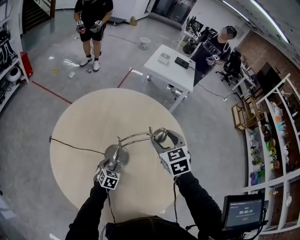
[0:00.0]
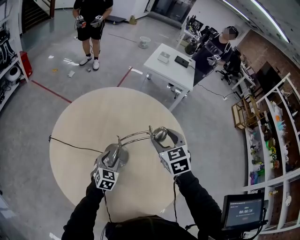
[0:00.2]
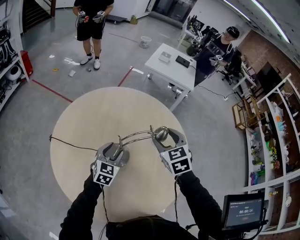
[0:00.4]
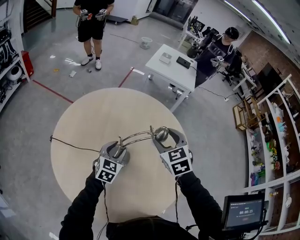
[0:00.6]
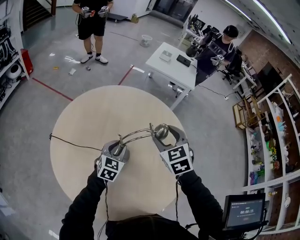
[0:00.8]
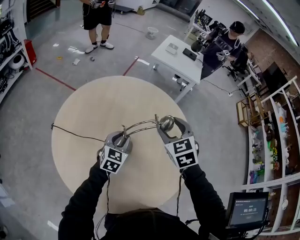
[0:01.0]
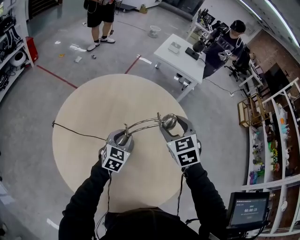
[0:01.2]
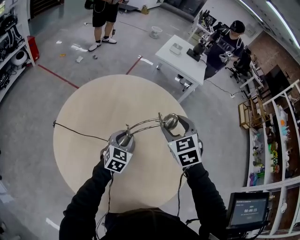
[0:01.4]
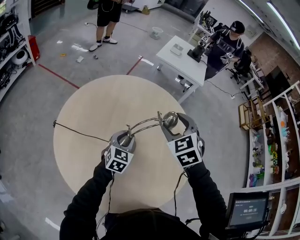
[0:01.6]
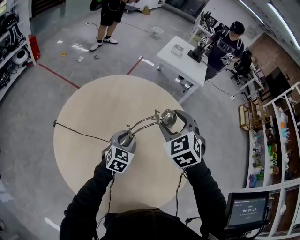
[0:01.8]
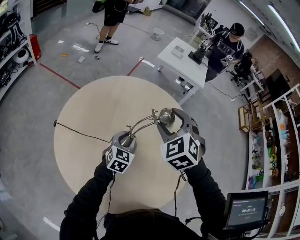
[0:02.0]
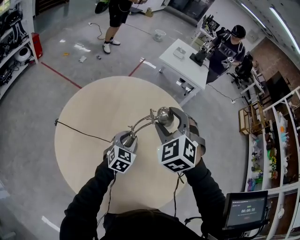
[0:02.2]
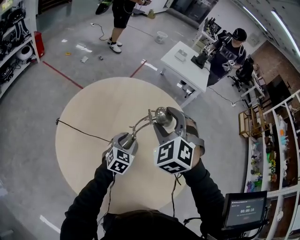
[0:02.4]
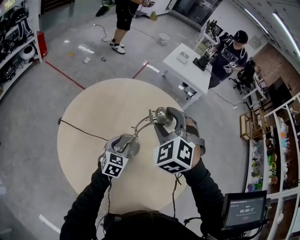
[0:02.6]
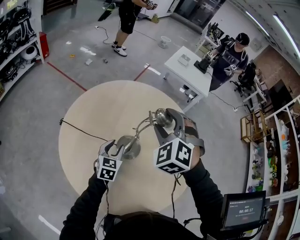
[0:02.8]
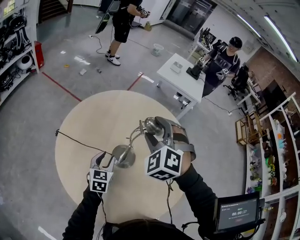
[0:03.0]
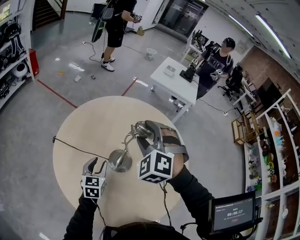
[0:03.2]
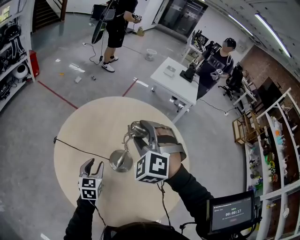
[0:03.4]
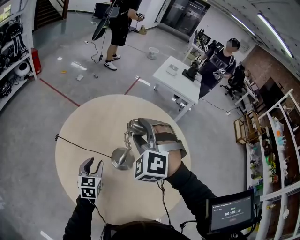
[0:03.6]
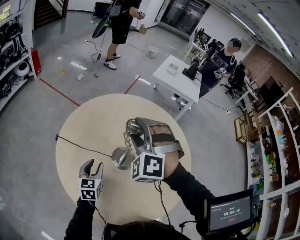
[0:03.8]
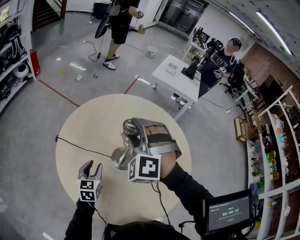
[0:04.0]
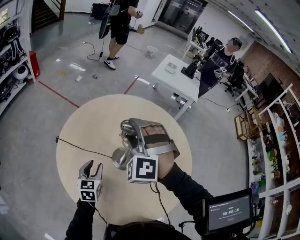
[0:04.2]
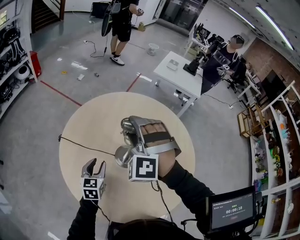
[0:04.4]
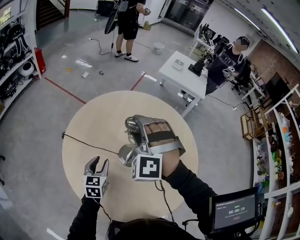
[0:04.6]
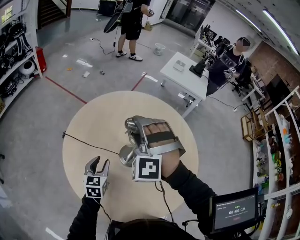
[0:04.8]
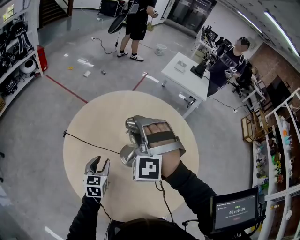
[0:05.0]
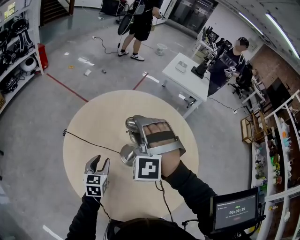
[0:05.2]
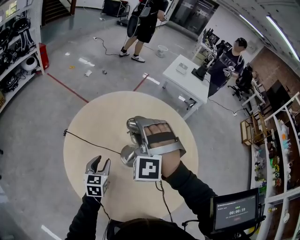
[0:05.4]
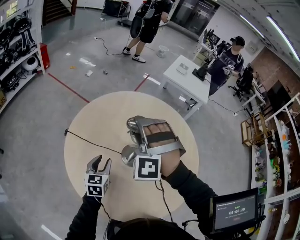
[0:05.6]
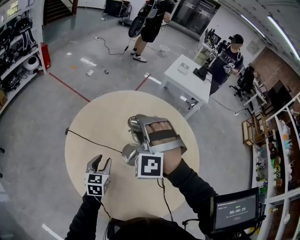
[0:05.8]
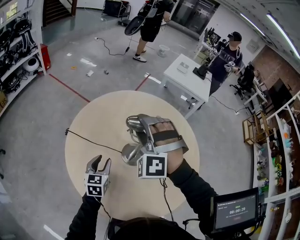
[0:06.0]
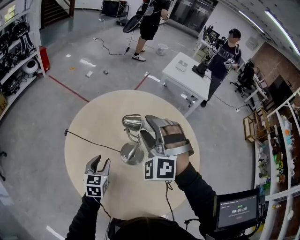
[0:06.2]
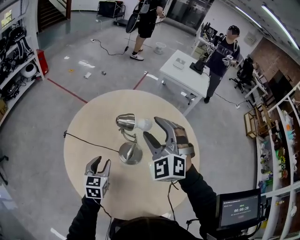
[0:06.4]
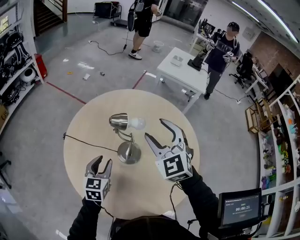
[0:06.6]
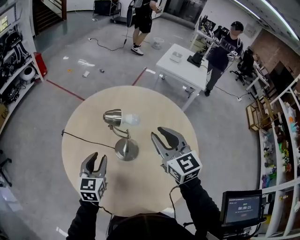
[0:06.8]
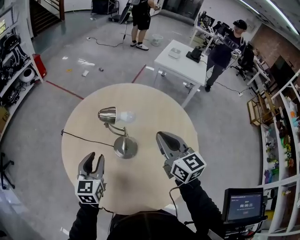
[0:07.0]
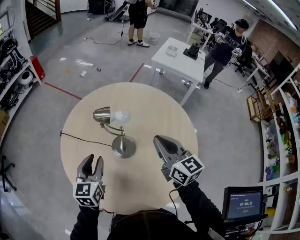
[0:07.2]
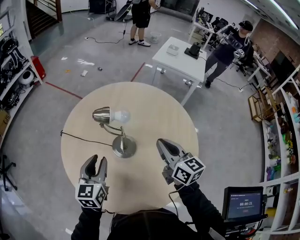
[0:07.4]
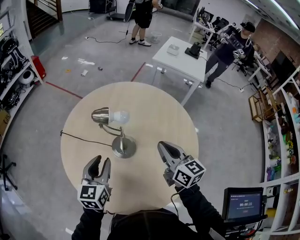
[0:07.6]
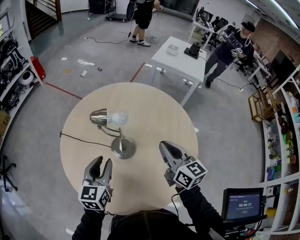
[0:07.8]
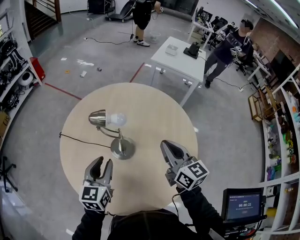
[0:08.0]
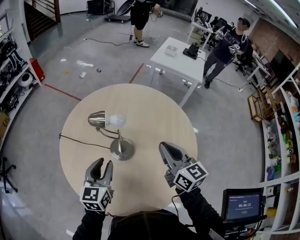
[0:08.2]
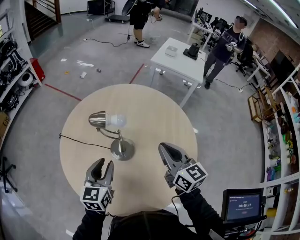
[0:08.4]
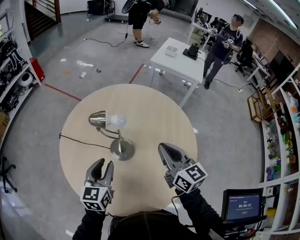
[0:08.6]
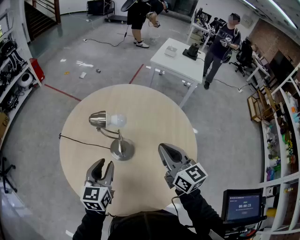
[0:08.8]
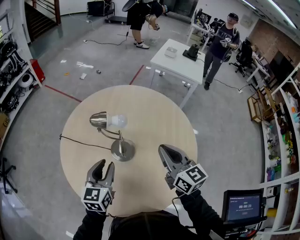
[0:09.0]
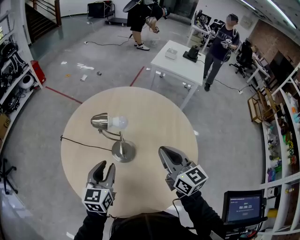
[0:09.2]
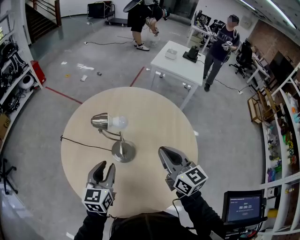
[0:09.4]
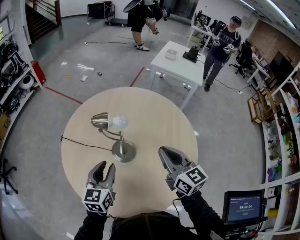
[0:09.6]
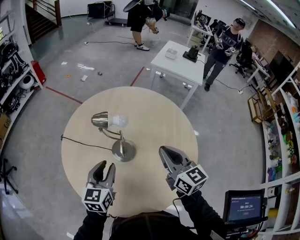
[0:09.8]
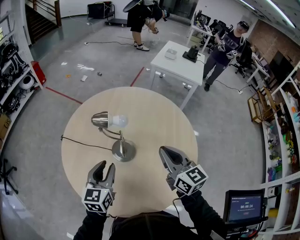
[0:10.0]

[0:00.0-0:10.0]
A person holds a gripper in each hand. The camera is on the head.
0:00.0 to 0:01.4: The left gripper heads upward, covering some 15 cm, turns by roughly 20 degrees, and closes its fingers.
0:01.4 to 0:02.8: The right gripper is displaced to the left and upward by about 10 cm, and rotates approximately 40 degrees. Meanwhile the left gripper heads to the left and backward, covering some 10 cm.
0:02.8 to 0:04.2: The left gripper moves to the left and backward, about 10 cm. The right gripper heads to the left, covering approximately 10 cm.
0:04.2 to 0:05.8: There are only small adjustments of the grippers.
0:05.8 to 0:07.2: The right gripper heads to the right, covering about 20 cm, twists about 100 degrees clockwise, seen from behind, and closes its fingers. Meanwhile the left gripper moves upward and to the right, roughly 10 cm.
0:07.2 to 0:08.6: The left gripper heads to the right, covering some 5 cm.
0:08.6 to 0:10.0: The grippers make only small movements.

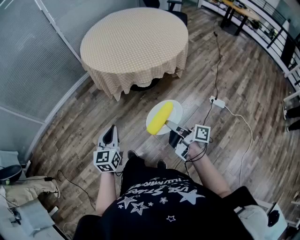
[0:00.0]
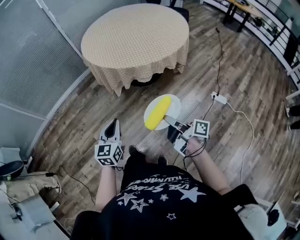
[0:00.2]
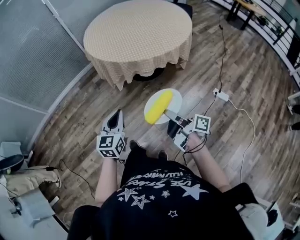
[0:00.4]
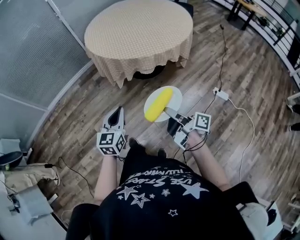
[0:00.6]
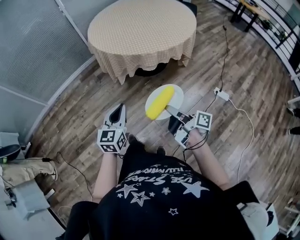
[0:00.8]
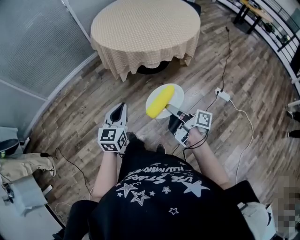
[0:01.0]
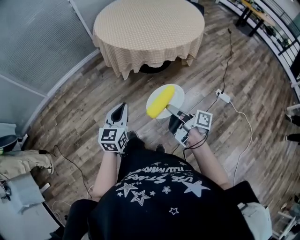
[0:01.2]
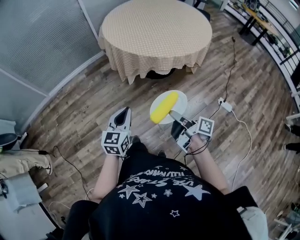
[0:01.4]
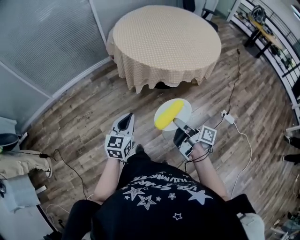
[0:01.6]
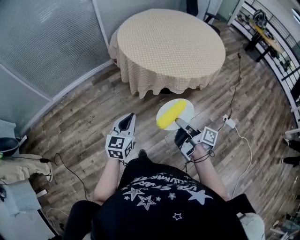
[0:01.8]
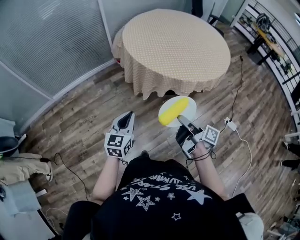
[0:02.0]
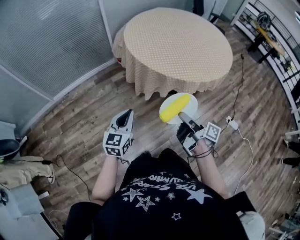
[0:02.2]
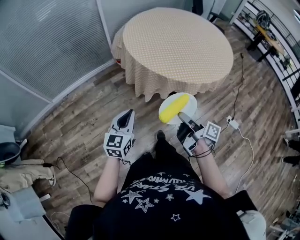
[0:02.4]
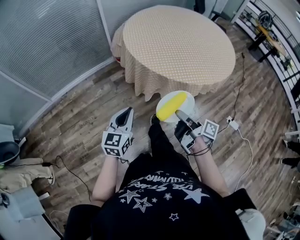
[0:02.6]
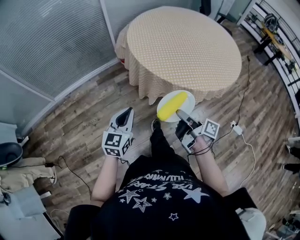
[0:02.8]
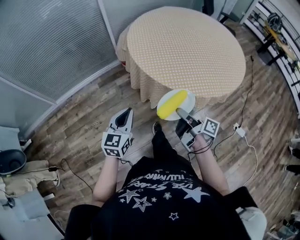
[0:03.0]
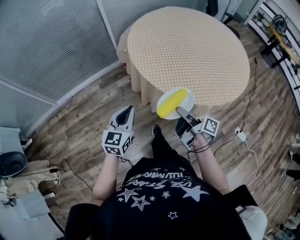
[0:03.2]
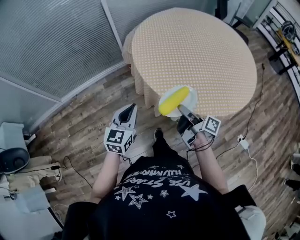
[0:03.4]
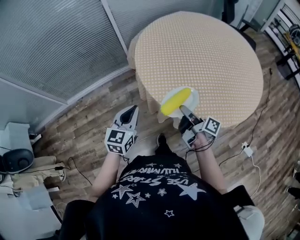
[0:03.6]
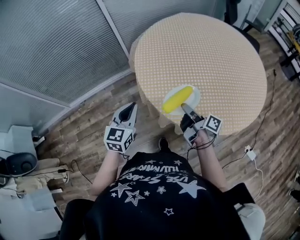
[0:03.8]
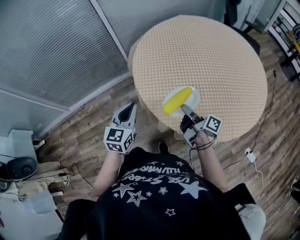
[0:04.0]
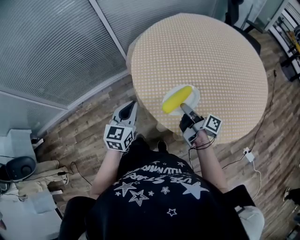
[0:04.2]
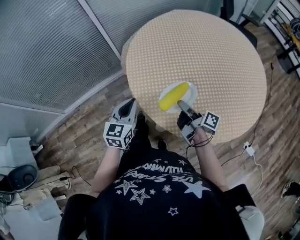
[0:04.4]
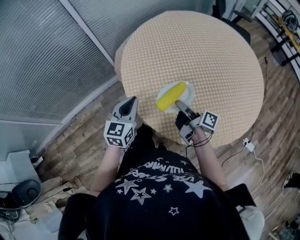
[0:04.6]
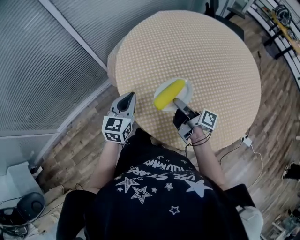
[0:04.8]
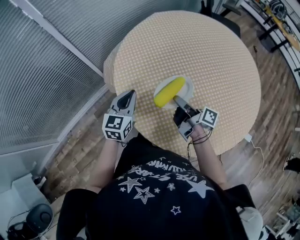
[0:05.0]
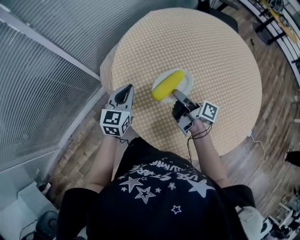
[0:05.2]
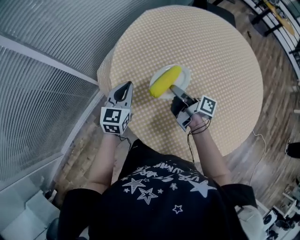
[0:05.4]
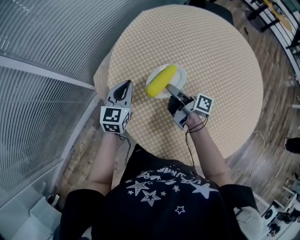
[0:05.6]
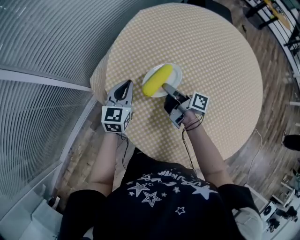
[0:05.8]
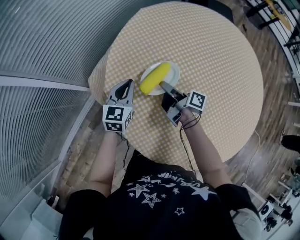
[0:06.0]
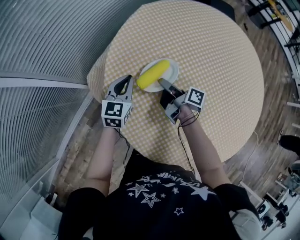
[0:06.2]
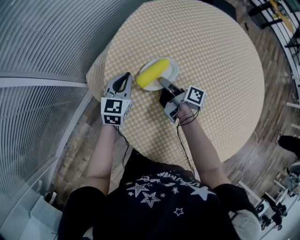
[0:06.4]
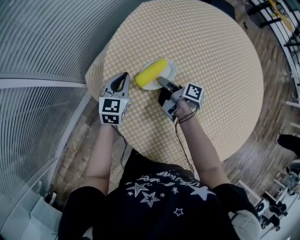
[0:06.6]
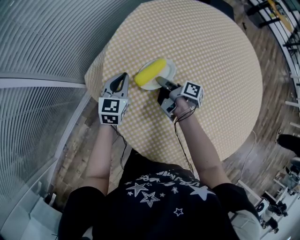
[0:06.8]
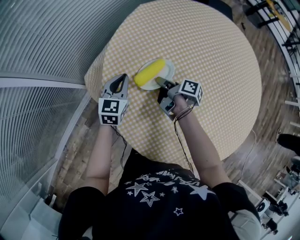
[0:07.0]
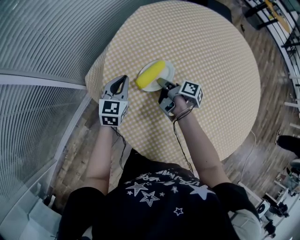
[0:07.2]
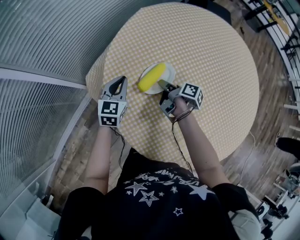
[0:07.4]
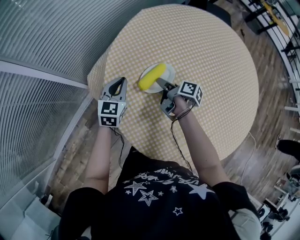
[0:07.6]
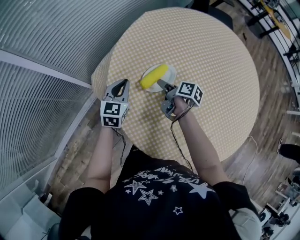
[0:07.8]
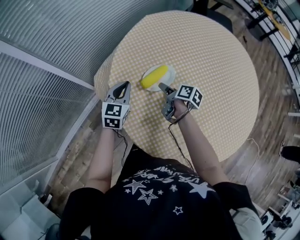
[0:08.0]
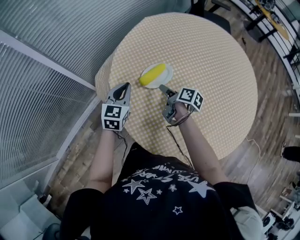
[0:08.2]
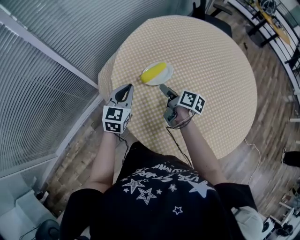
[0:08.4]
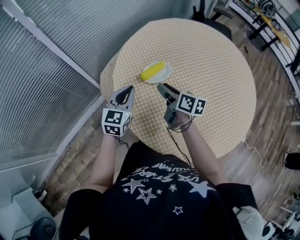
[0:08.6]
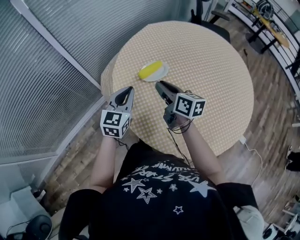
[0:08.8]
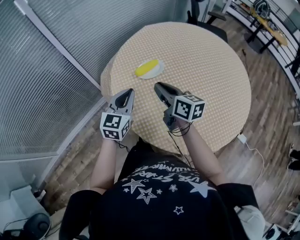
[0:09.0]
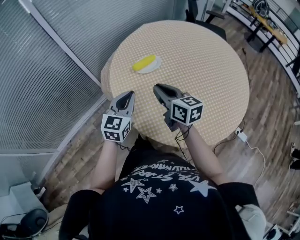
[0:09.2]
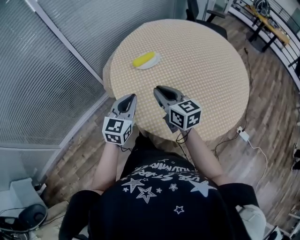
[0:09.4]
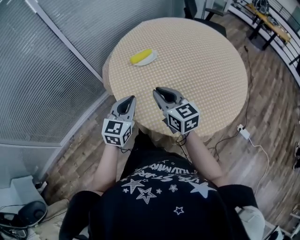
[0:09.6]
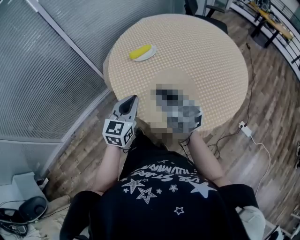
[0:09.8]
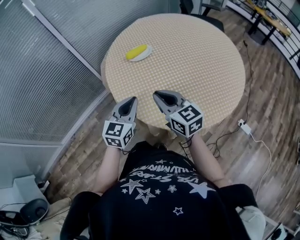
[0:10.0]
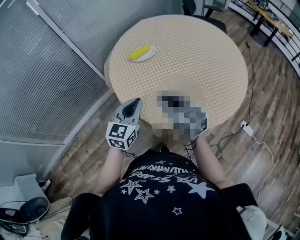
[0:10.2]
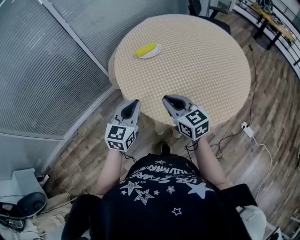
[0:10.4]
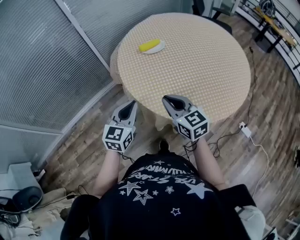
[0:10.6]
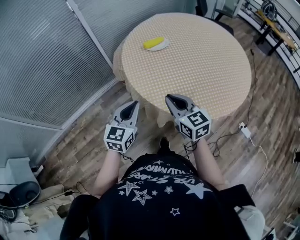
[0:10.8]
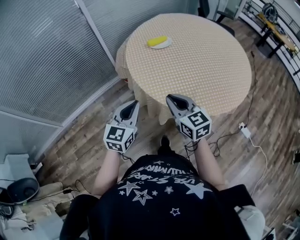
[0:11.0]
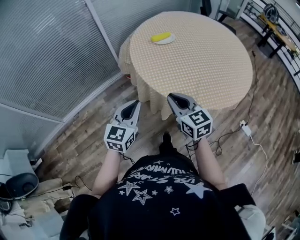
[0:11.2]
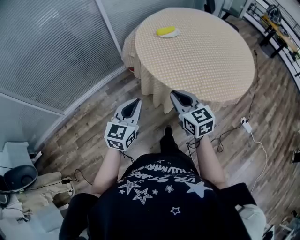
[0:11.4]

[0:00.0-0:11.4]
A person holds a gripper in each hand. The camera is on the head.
0:01.4 to 0:02.8: The left gripper ends up approximately 25 cm from where it was.
0:02.8 to 0:04.2: The left gripper changes place by approximately 30 cm.
0:04.2 to 0:05.6: The left gripper ends up approximately 40 cm from where it was, and rotates roughly 20 degrees.
0:05.6 to 0:07.2: The left gripper moves approximately 10 cm.
0:07.2 to 0:08.6: The left gripper changes place by about 20 cm.
0:08.6 to 0:10.0: The left gripper shifts by approximately 30 cm.
0:10.0 to 0:11.4: The left gripper shifts by about 25 cm.

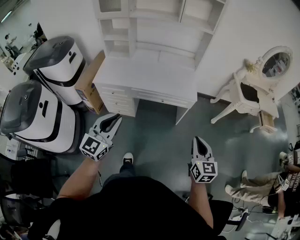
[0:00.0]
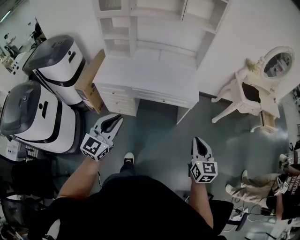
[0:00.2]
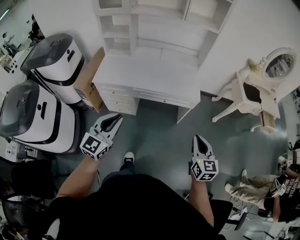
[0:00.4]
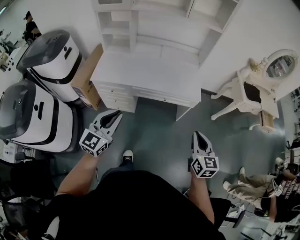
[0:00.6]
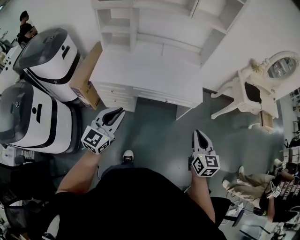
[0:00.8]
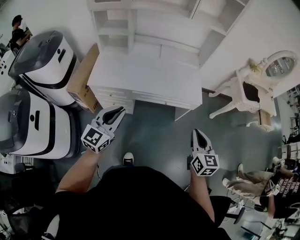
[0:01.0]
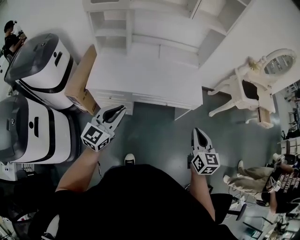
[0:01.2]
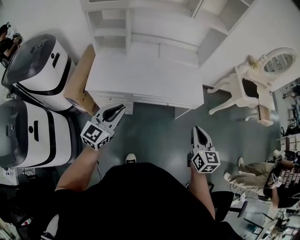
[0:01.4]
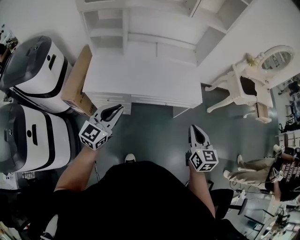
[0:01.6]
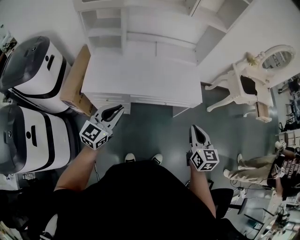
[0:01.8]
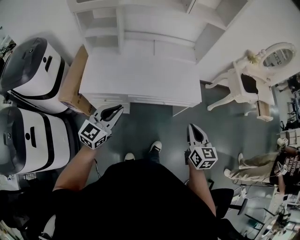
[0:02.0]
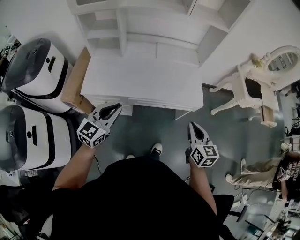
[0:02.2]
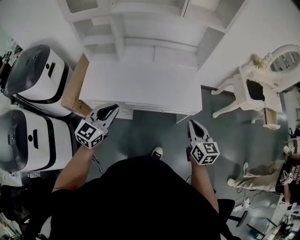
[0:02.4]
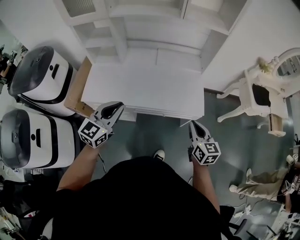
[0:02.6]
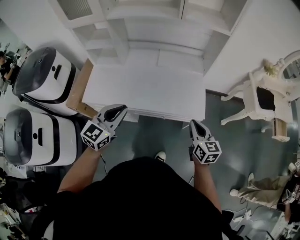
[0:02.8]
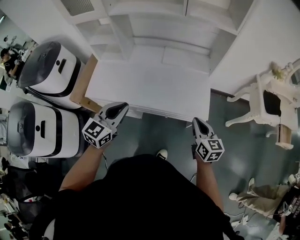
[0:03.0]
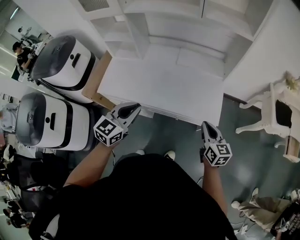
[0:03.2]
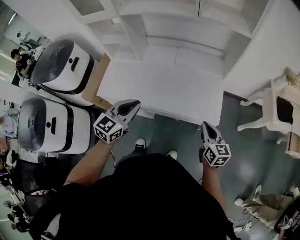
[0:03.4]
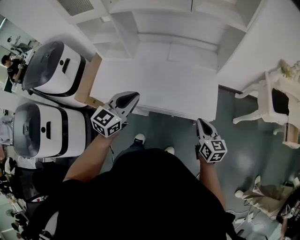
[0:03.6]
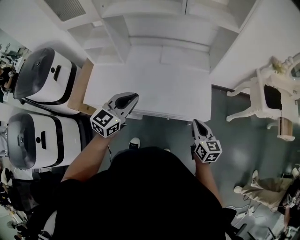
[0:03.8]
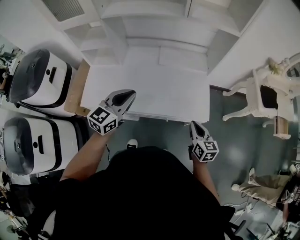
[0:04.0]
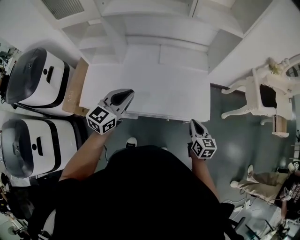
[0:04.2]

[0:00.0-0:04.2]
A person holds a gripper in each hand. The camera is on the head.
0:00.0 to 0:01.4: The left gripper moves forward and to the left, roughly 25 cm. Meanwhile the right gripper heads to the left and forward, covering roughly 20 cm.
0:01.4 to 0:02.8: The grippers both shift forward and to the right by some 20 cm.
0:02.8 to 0:04.2: The left gripper travels forward by approximately 15 cm; the right gripper travels downward and forward by about 10 cm.
